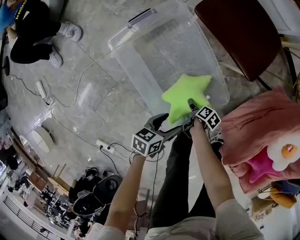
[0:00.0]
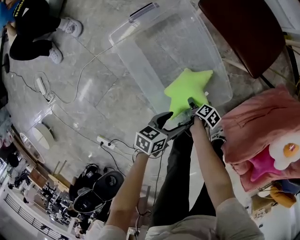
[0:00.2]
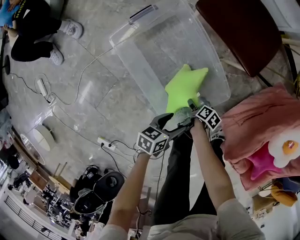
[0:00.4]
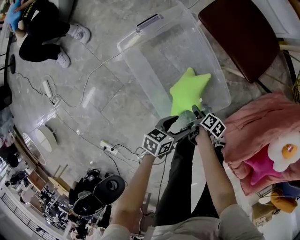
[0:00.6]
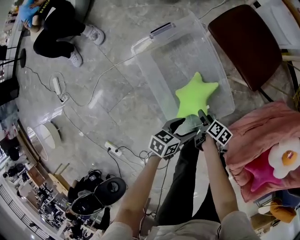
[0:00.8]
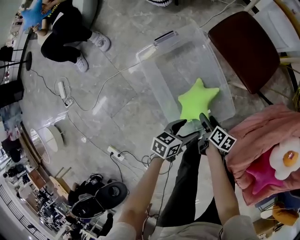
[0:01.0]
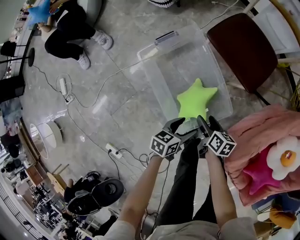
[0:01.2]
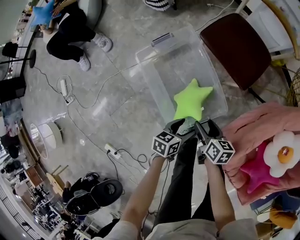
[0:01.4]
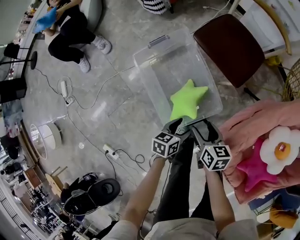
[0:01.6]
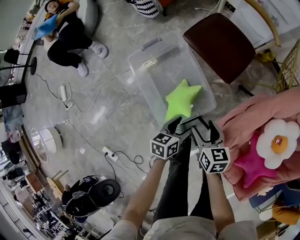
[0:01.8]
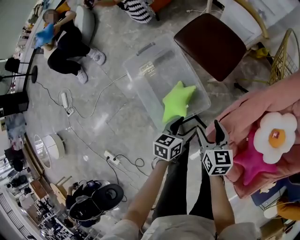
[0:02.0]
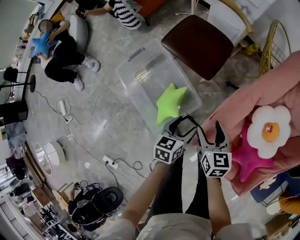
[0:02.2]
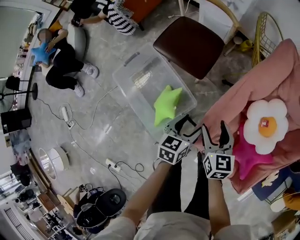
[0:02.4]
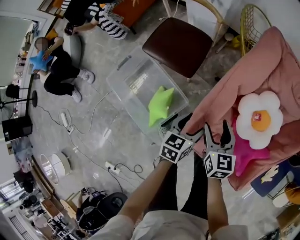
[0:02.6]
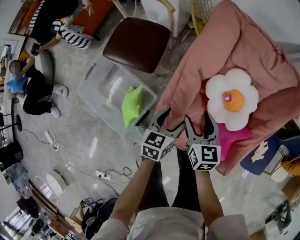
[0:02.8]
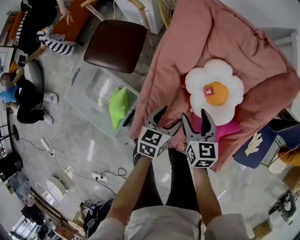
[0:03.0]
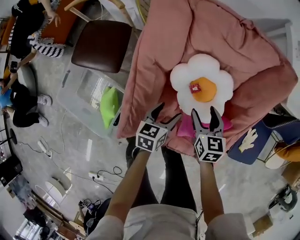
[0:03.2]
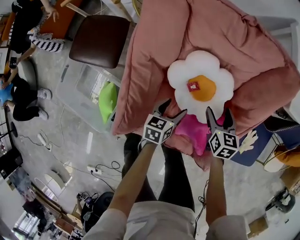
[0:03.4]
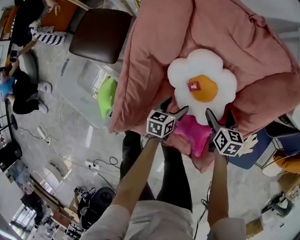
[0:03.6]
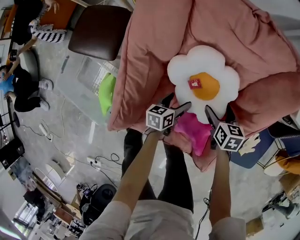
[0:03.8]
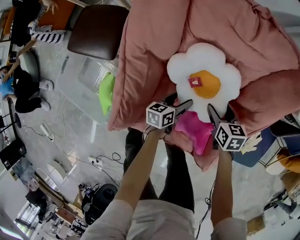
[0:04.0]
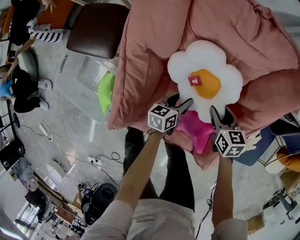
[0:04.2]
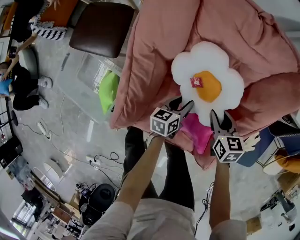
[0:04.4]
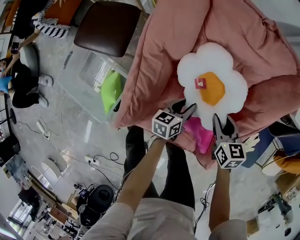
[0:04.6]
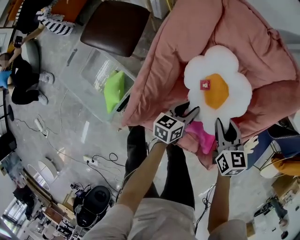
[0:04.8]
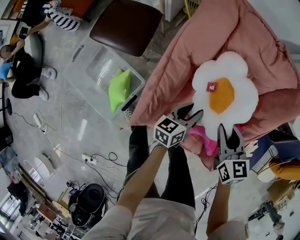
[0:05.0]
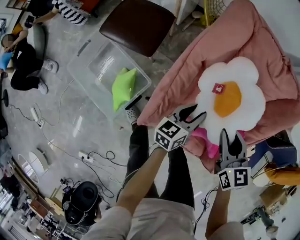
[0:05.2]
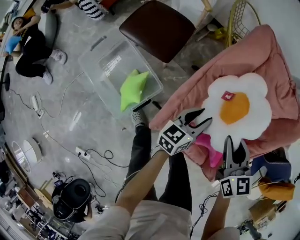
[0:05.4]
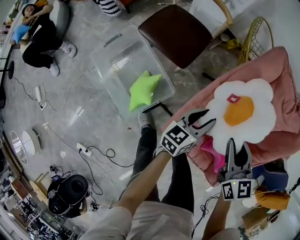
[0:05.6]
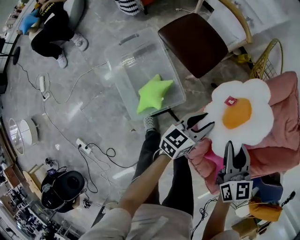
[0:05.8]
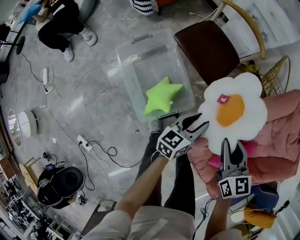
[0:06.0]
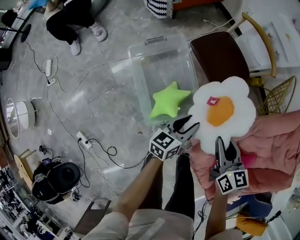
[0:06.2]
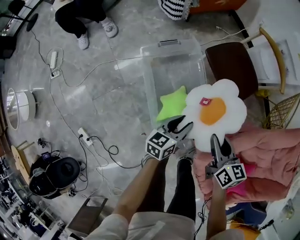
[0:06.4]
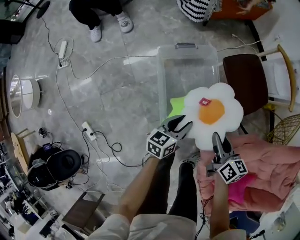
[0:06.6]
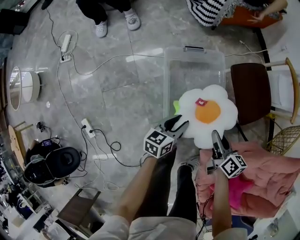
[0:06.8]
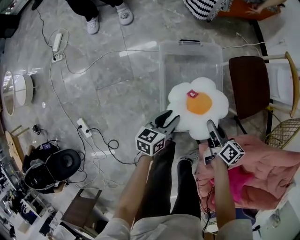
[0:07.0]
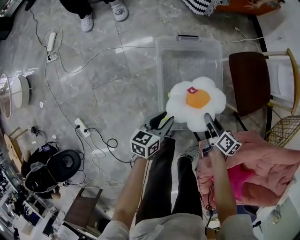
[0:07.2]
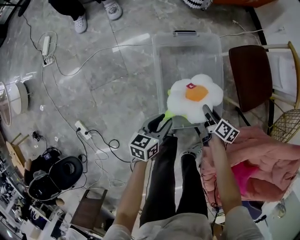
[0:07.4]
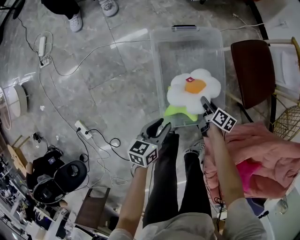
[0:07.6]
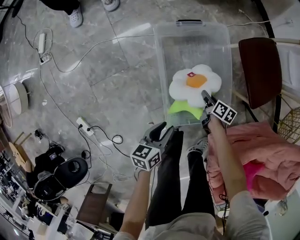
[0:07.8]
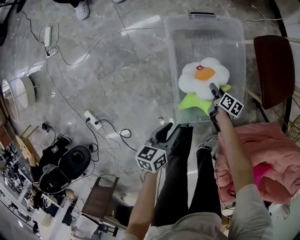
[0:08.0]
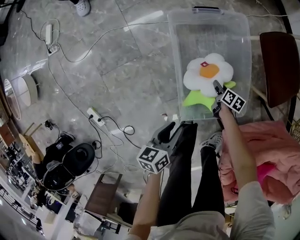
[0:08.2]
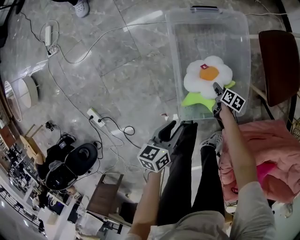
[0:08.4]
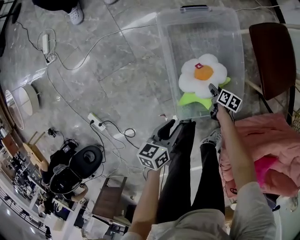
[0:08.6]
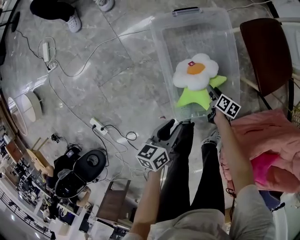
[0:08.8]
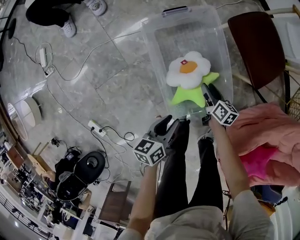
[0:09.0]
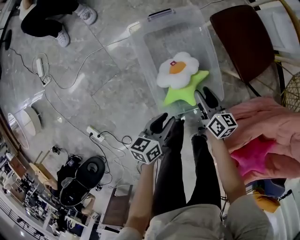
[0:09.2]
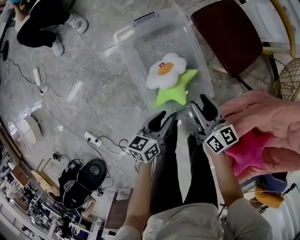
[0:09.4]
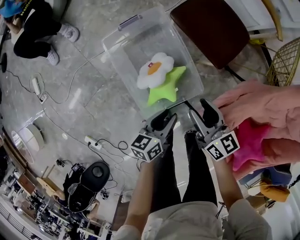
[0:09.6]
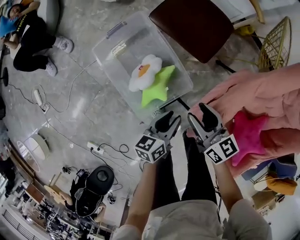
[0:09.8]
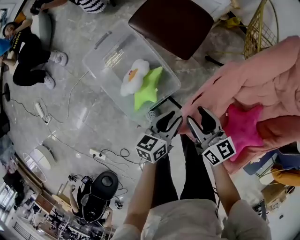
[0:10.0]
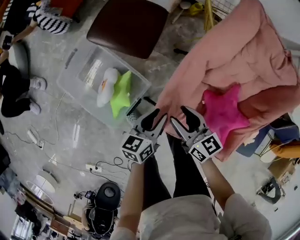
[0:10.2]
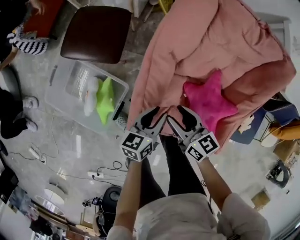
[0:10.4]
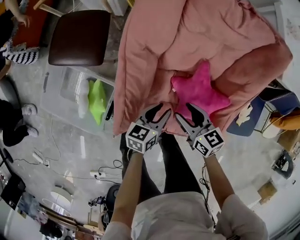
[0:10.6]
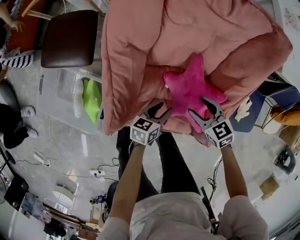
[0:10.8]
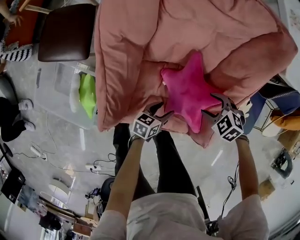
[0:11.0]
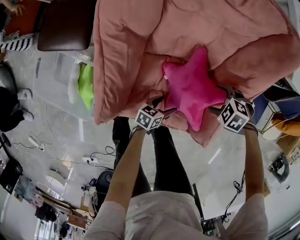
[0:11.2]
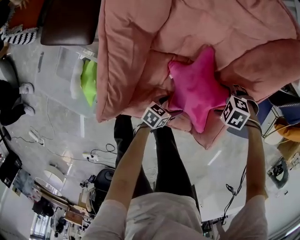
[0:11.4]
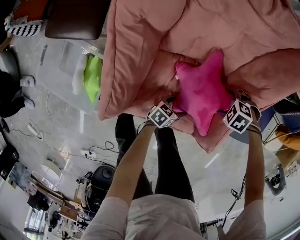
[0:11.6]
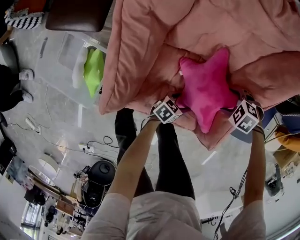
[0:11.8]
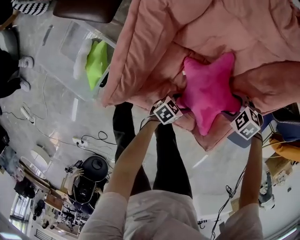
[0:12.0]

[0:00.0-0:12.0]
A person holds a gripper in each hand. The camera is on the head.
0:00.0 to 0:01.6: The left gripper shifts roughly 15 cm upward and to the right. The right gripper moves upward, some 35 cm, and twists about 50 degrees counterclockwise, seen from behind.
0:01.6 to 0:03.0: Both grippers are carried approximately 50 cm. The right gripper turns by roughly 40 degrees; the left gripper rotates roughly 30 degrees.
0:03.0 to 0:04.4: Both grippers move to the right and downward, about 20 cm. The left gripper closes its fingers, while the right gripper closes its fingers.
0:04.4 to 0:06.0: Both grippers are carried about 40 cm. The right gripper swivels roughly 40 degrees, while the left gripper rotates some 30 degrees.
0:06.0 to 0:07.6: The right gripper moves downward, some 40 cm, and changes its angle by some 40 degrees, while the left gripper shifts by about 40 cm, and turns by about 40 degrees.
0:07.6 to 0:09.0: The right gripper goes downward and returns, approximately 15 cm each way.
0:09.0 to 0:10.4: The pair of grippers is taken some 50 cm. The right gripper swivels about 30 degrees; the left gripper rotates approximately 50 degrees.
0:10.4 to 0:12.0: The left gripper moves roughly 35 cm, changes its angle by some 40 degrees, and opens up. Meanwhile the right gripper ends up approximately 35 cm from where it was, and tilts its fingers about 50 degrees downward.

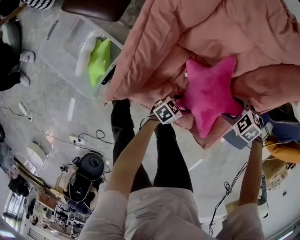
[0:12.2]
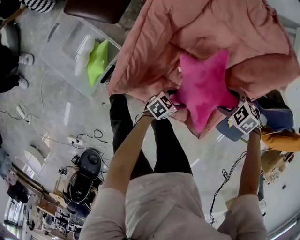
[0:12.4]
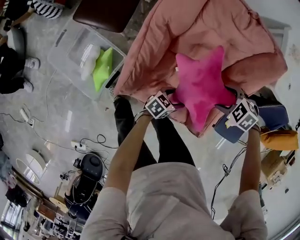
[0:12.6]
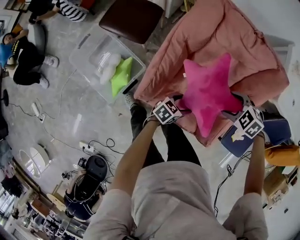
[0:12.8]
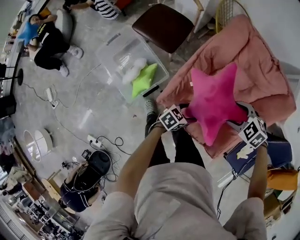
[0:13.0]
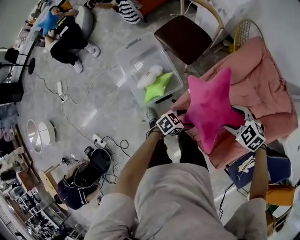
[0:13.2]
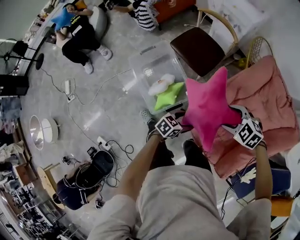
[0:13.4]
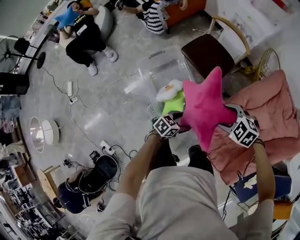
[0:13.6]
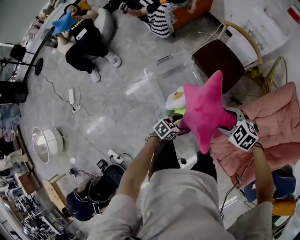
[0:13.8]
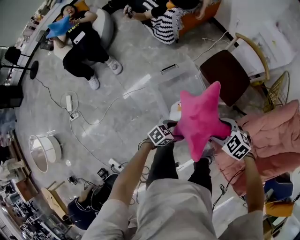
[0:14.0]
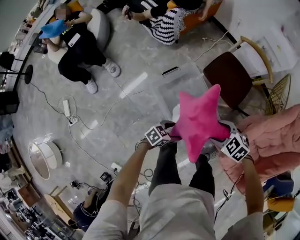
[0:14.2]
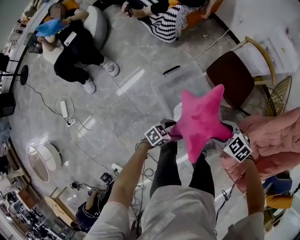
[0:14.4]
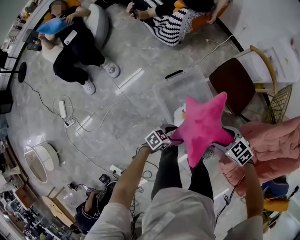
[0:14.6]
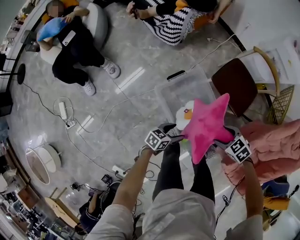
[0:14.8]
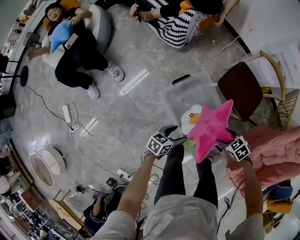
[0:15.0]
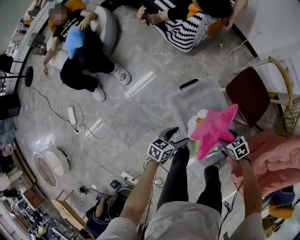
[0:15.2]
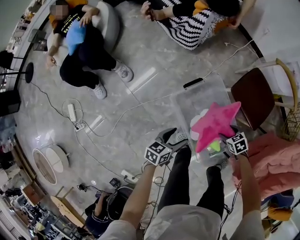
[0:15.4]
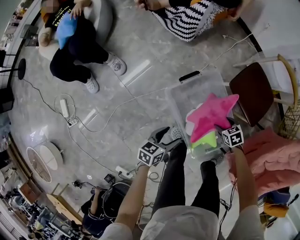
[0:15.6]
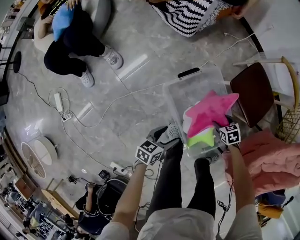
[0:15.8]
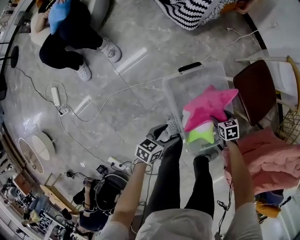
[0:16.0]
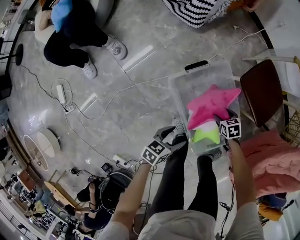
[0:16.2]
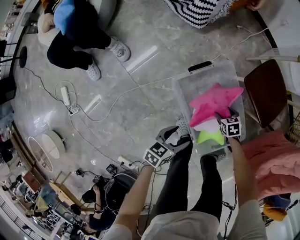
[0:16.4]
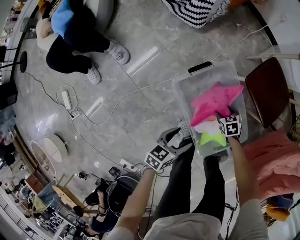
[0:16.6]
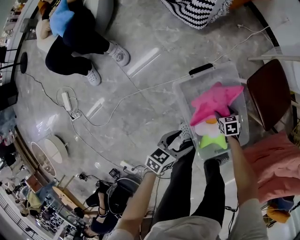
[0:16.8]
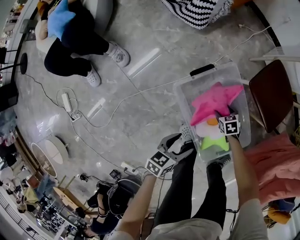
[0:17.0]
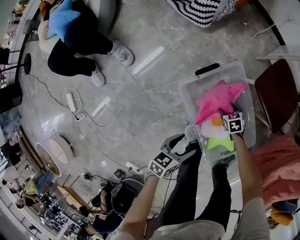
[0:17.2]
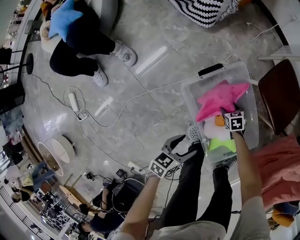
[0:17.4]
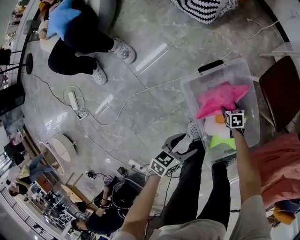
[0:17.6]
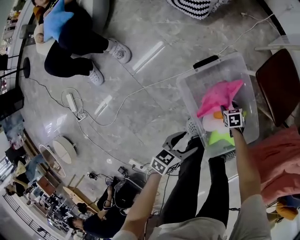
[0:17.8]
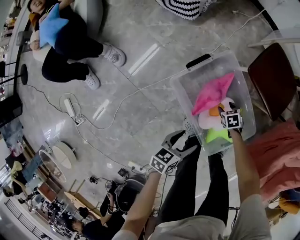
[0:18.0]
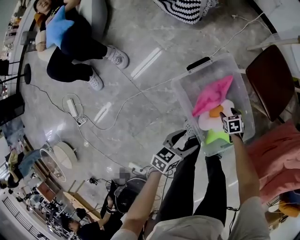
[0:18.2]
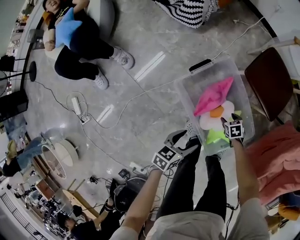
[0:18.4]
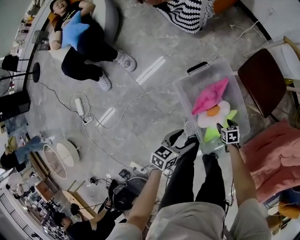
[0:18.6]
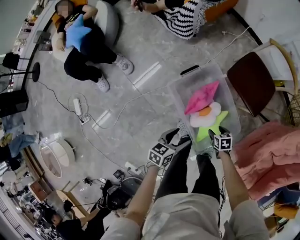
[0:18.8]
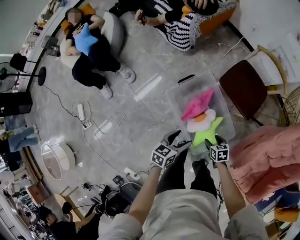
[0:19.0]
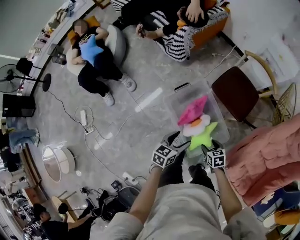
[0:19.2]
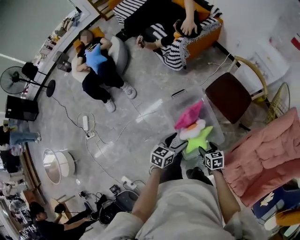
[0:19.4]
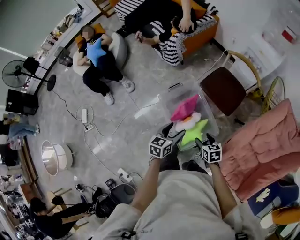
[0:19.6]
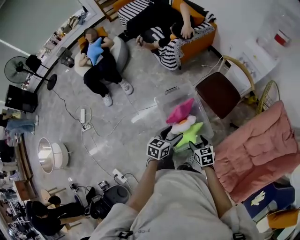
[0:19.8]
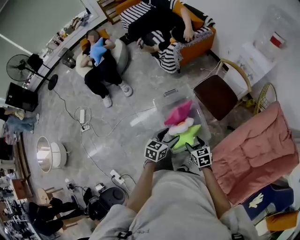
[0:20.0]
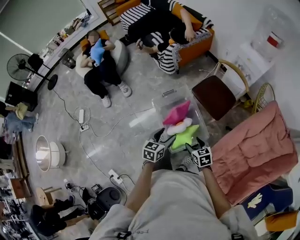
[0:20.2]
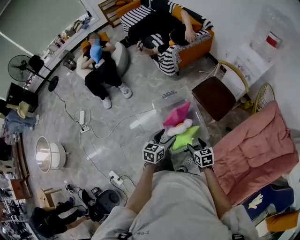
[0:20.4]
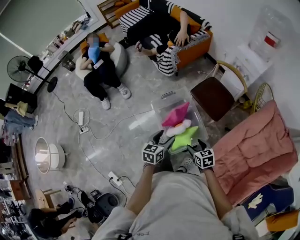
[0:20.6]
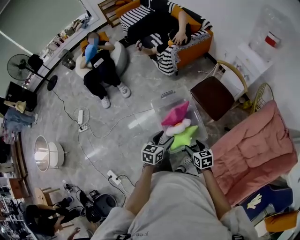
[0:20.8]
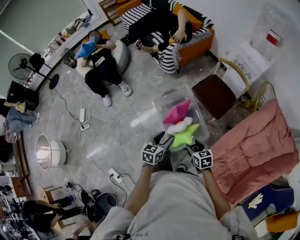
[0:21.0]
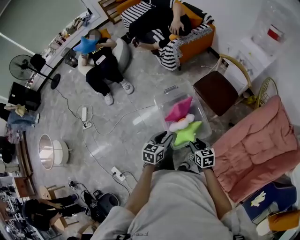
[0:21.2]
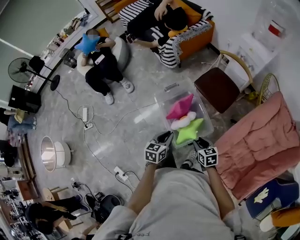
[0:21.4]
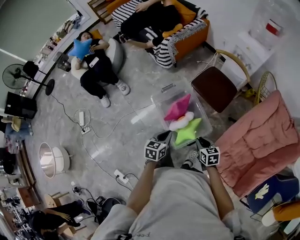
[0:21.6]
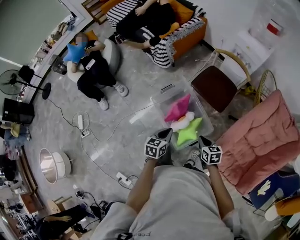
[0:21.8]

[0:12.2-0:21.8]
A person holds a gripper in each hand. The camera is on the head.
0:12.2 to 0:13.8: The two grippers travel together, roughly 60 cm. The right gripper turns by approximately 30 degrees, while the left gripper swivels roughly 30 degrees.
0:13.8 to 0:15.4: The left gripper moves some 40 cm, and swivels some 30 degrees. Meanwhile the right gripper travels downward by about 25 cm, and twists some 40 degrees clockwise, seen from behind.
0:15.4 to 0:17.0: The right gripper heads downward, covering approximately 20 cm, while the left gripper travels downward by roughly 10 cm.
0:17.0 to 0:18.6: The left gripper shifts about 10 cm upward. The right gripper shifts by about 15 cm.
0:18.6 to 0:20.2: The right gripper goes about 35 cm upward, and turns by some 30 degrees. The left gripper shifts approximately 25 cm upward, and changes its angle by roughly 30 degrees.
0:20.2 to 0:21.8: The left gripper moves some 5 cm, and closes. The right gripper closes up.

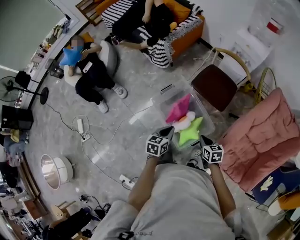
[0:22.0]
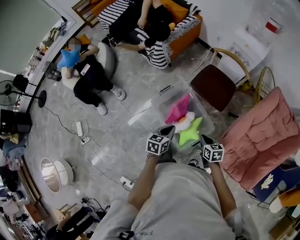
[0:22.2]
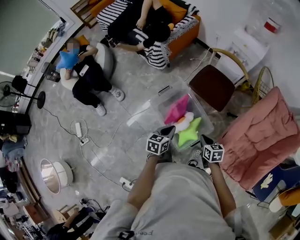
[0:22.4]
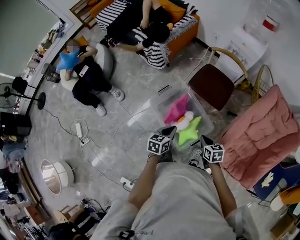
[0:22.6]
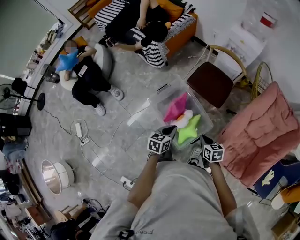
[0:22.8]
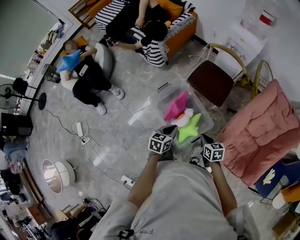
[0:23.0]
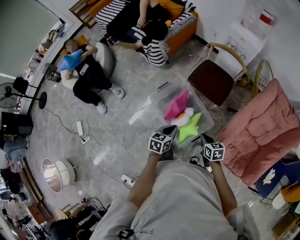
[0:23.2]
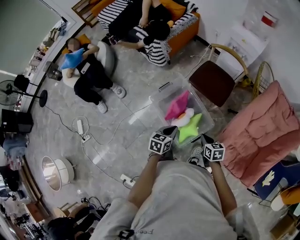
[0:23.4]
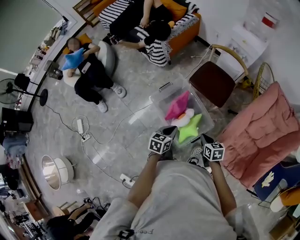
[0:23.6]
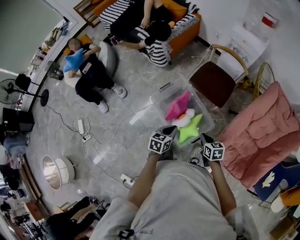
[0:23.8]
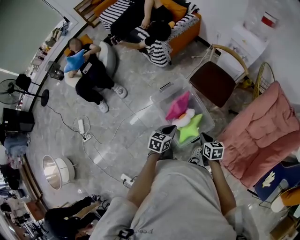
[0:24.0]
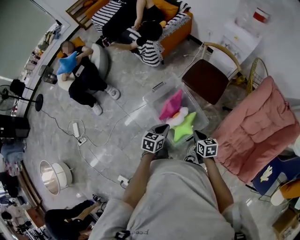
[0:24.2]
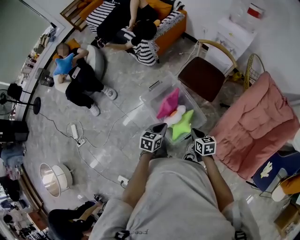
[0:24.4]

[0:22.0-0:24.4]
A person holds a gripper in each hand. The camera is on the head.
0:22.0 to 0:24.4: The grippers move only a little.
